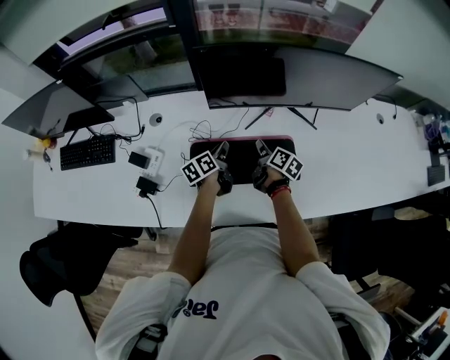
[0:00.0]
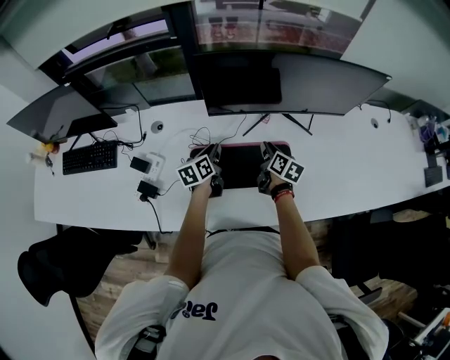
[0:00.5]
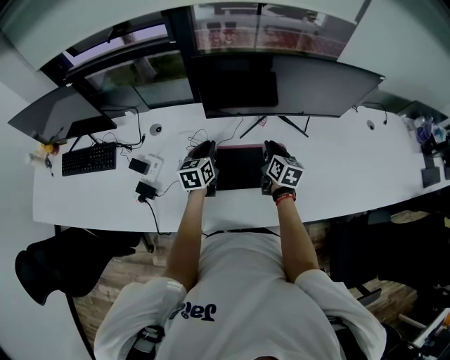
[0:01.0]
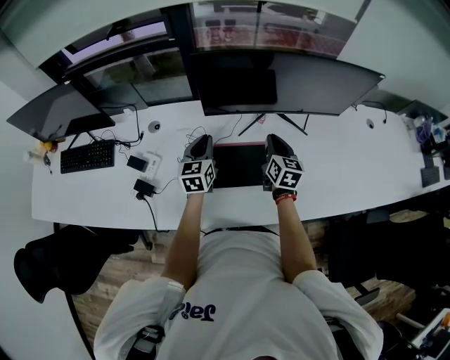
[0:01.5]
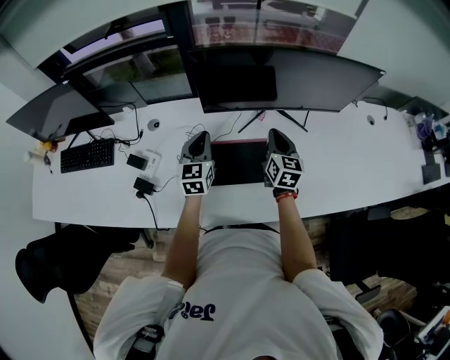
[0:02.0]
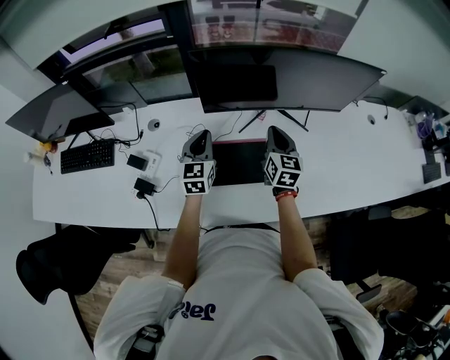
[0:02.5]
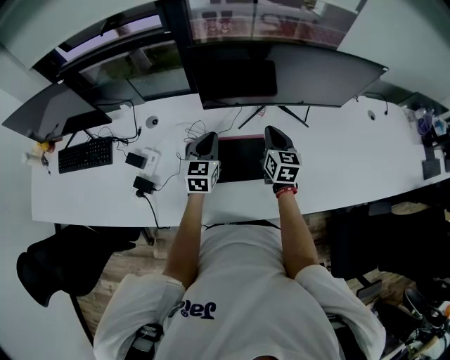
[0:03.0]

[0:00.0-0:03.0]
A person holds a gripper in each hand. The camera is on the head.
0:00.0 to 0:01.5: Both grippers travel together upward, some 10 cm. The right gripper rotates about 40 degrees; the left gripper rotates around the line of its fingers by some 50 degrees, clockwise from behind.
0:01.5 to 0:03.0: There are only small adjustments of the grippers.

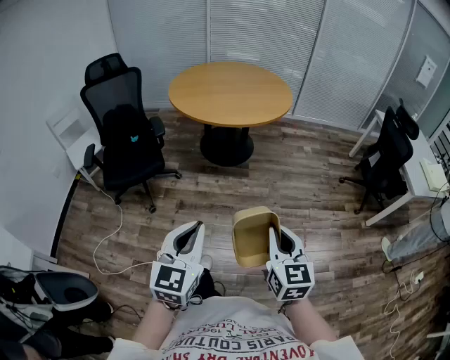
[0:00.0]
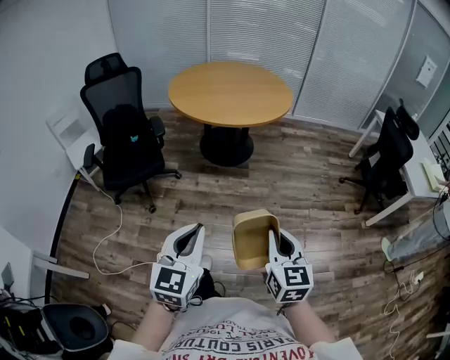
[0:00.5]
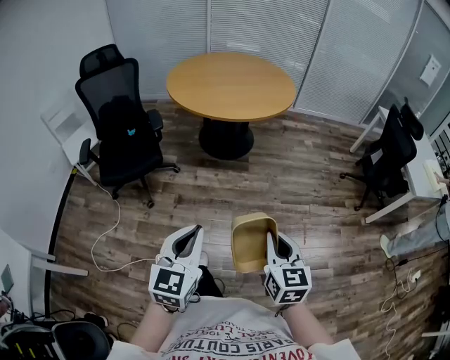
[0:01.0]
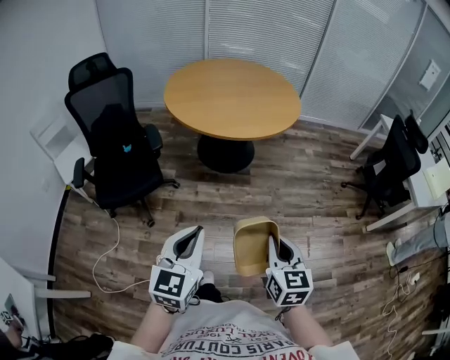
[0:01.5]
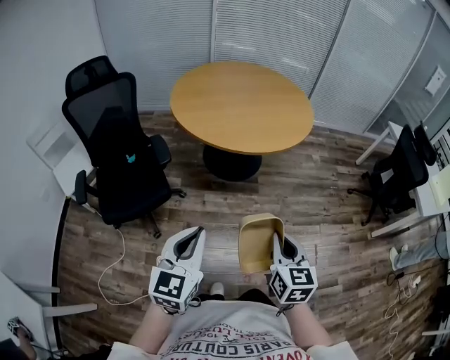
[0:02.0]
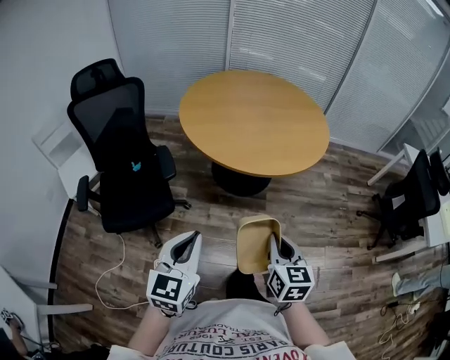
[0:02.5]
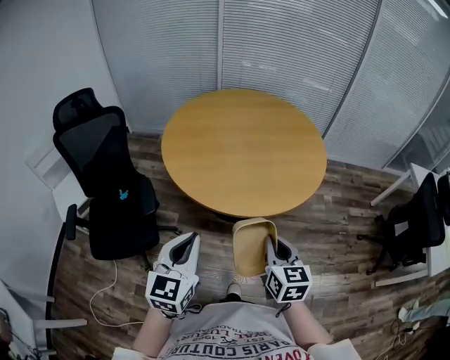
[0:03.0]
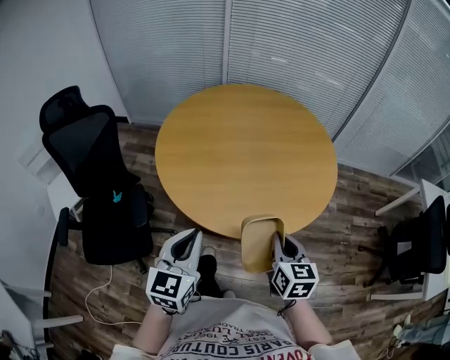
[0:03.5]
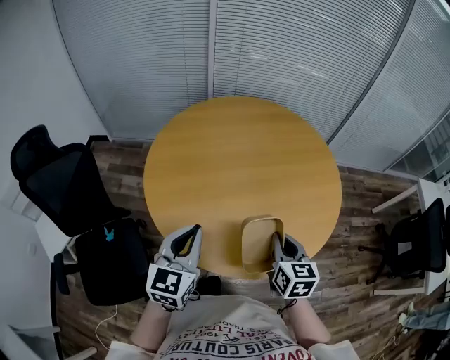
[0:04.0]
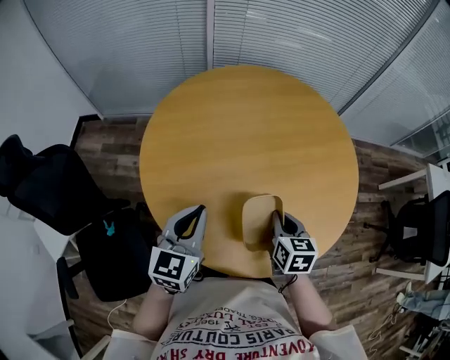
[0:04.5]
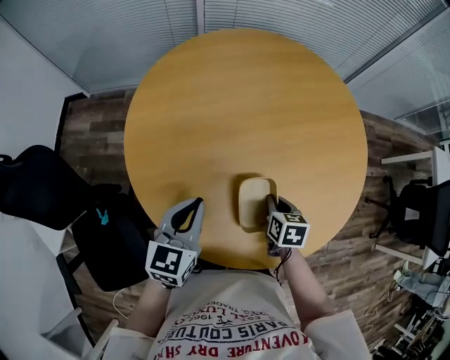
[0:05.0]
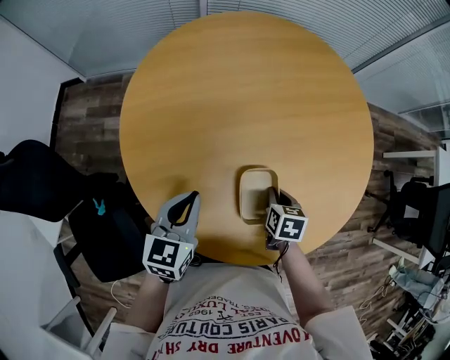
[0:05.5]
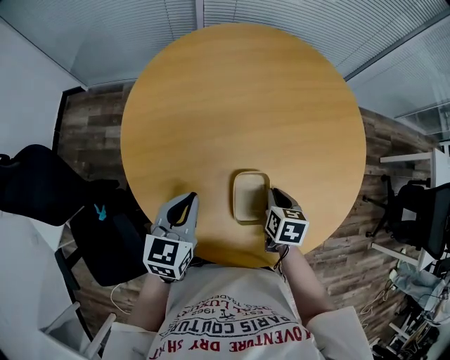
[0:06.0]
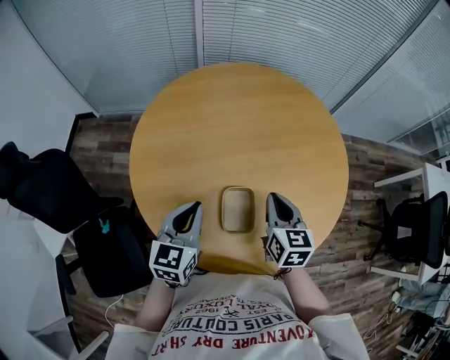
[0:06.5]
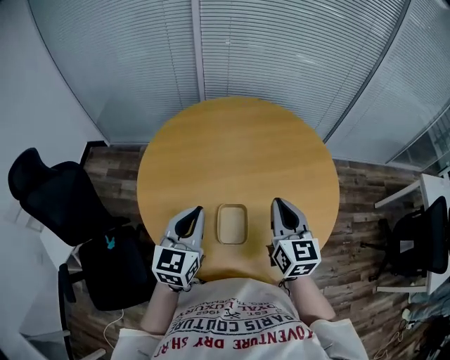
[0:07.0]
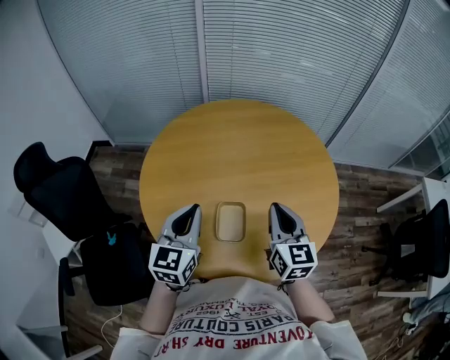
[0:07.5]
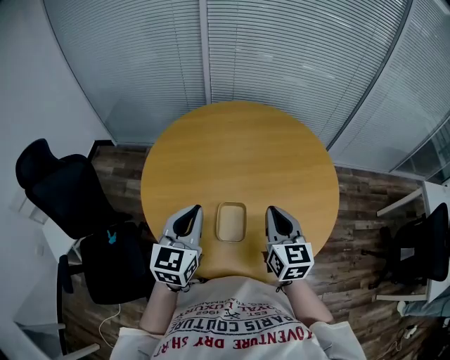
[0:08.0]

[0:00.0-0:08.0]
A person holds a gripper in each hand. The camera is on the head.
0:00.0 to 0:02.0: The two grippers go some 30 cm forward and to the left.
0:02.0 to 0:04.0: The pair of grippers is taken forward, about 60 cm.
0:04.0 to 0:06.0: The right gripper is displaced downward and forward by approximately 25 cm, and rotates about 30 degrees. Meanwhile the left gripper is displaced forward and downward by roughly 20 cm.
0:06.0 to 0:08.0: The left gripper shifts approximately 20 cm upward, to the right and backward, and rotates about 20 degrees. Meanwhile the right gripper heads upward, covering approximately 25 cm, and angles its fingers upward, by some 40 degrees.

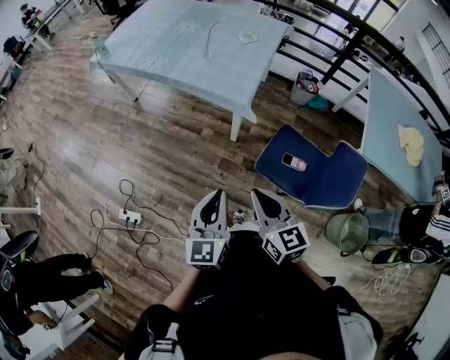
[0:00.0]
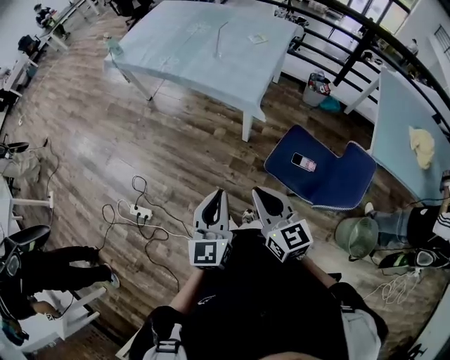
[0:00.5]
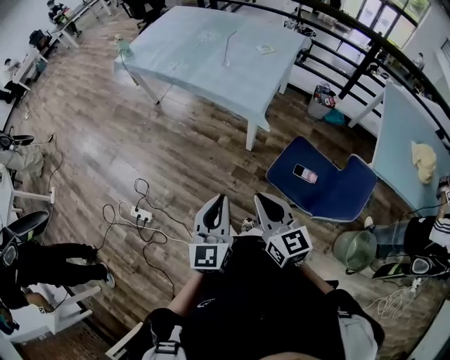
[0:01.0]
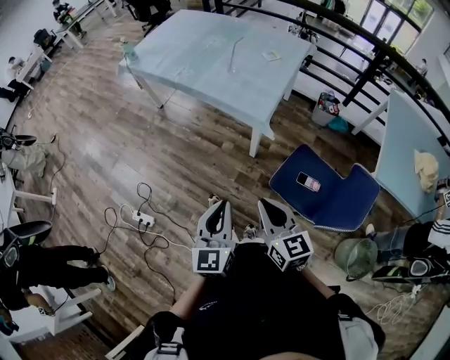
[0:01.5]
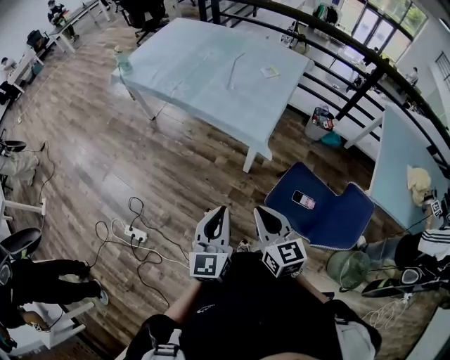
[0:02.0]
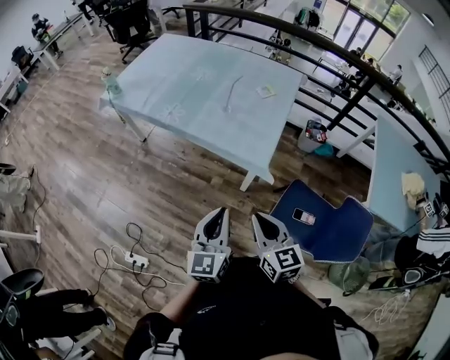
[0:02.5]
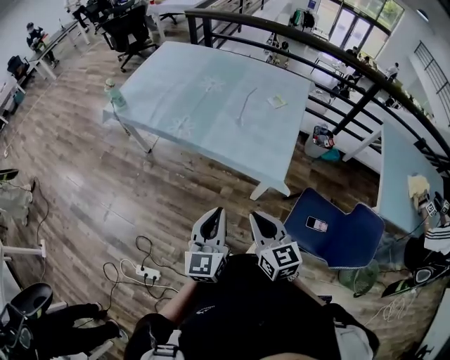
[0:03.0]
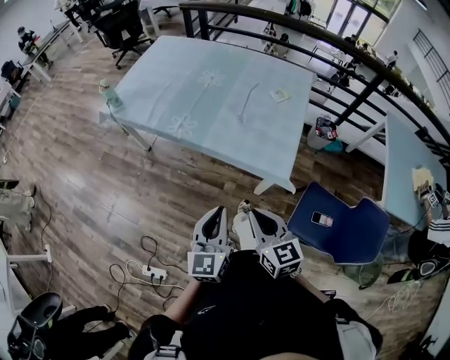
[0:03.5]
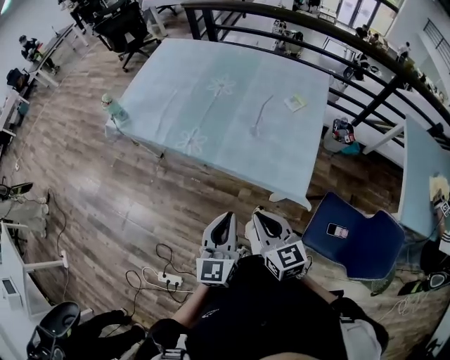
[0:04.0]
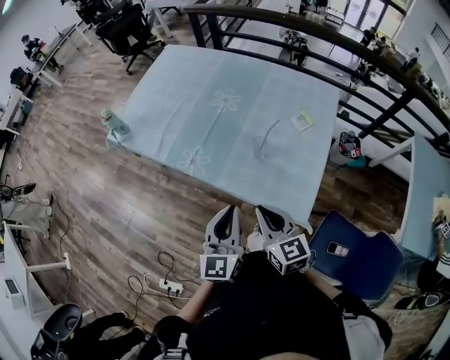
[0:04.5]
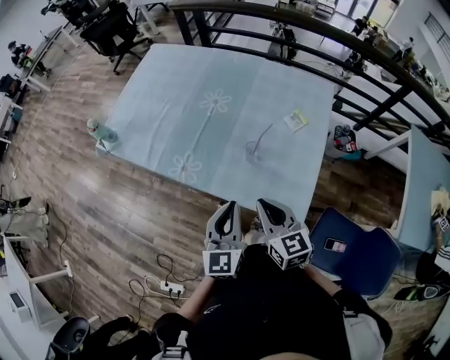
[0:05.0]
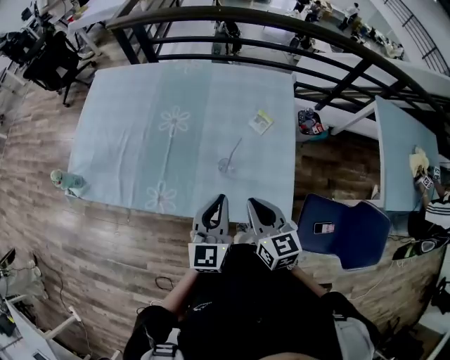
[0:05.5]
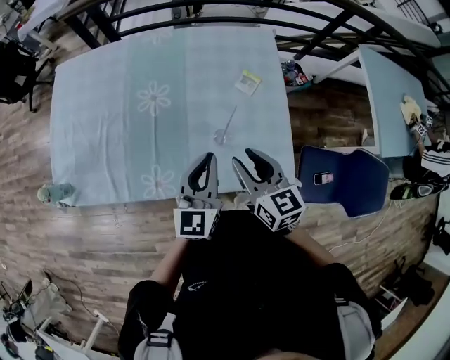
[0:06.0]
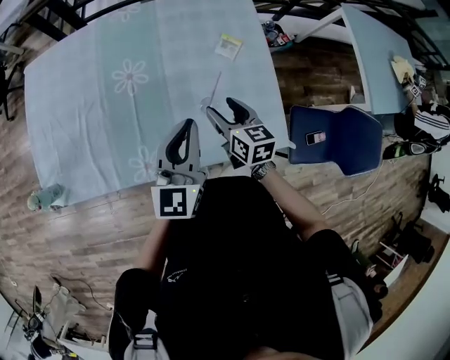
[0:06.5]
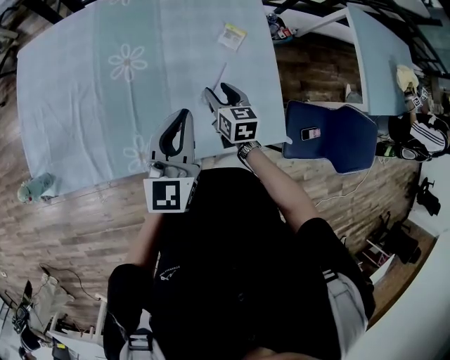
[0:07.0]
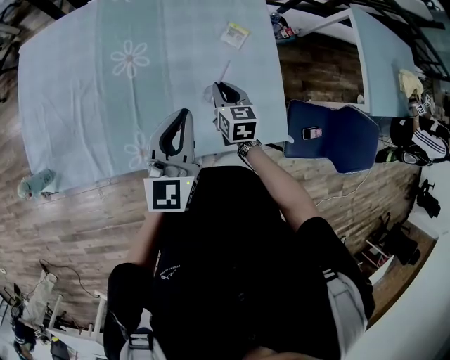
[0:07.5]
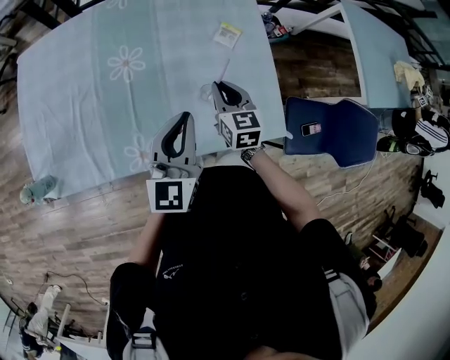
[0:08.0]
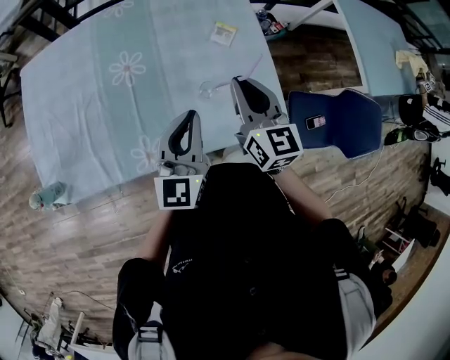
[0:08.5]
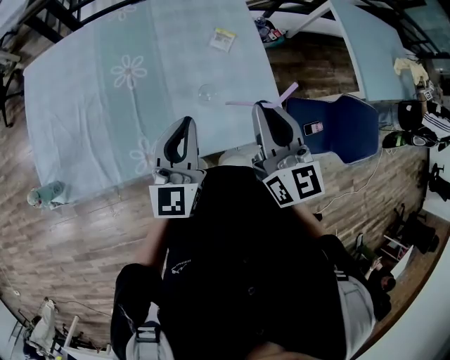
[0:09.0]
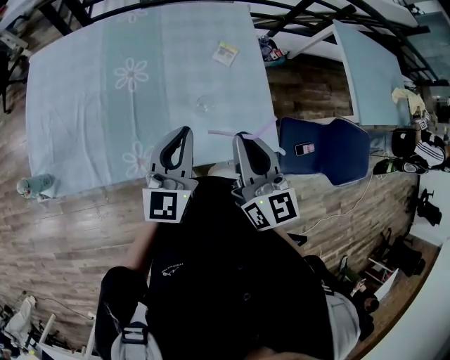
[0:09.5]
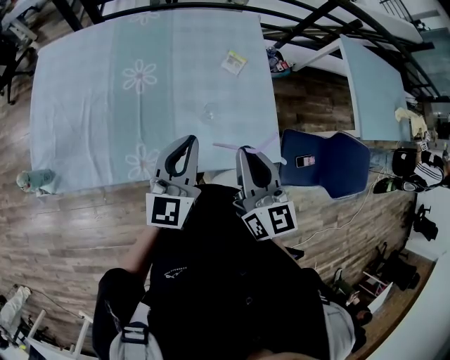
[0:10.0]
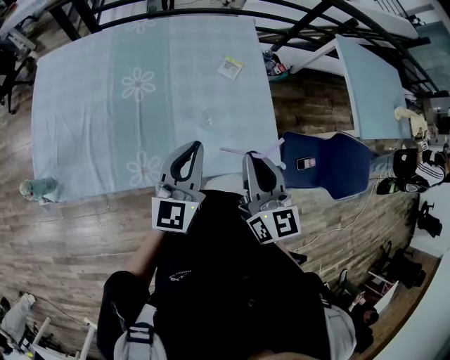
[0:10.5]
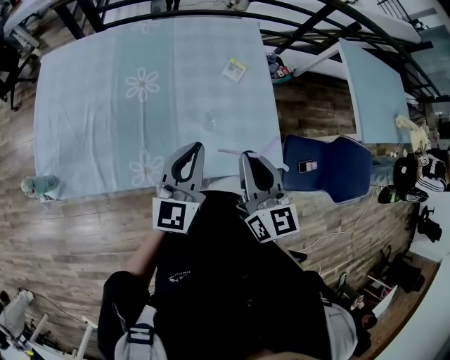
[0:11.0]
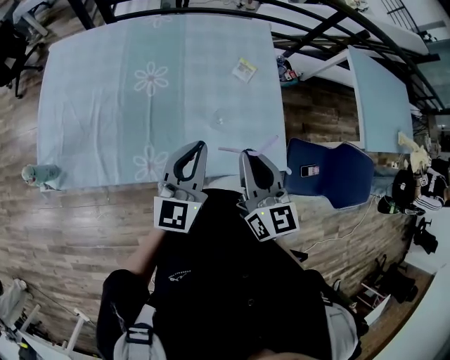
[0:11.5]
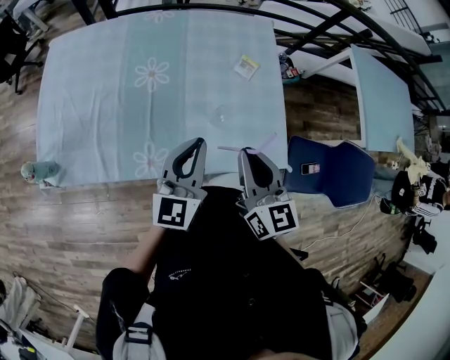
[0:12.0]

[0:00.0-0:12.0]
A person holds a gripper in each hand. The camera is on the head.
0:00.0 to 0:02.0: The grippers both shift forward by some 5 cm.
0:02.0 to 0:04.0: The right gripper is displaced forward and to the left by some 35 cm. The left gripper is displaced forward by approximately 30 cm.
0:04.0 to 0:06.0: The left gripper moves some 35 cm, and changes its angle by some 30 degrees; the right gripper changes place by approximately 30 cm, turns by some 30 degrees, and opens up.
0:06.0 to 0:08.0: The right gripper moves downward and forward, approximately 15 cm, and closes.
0:08.0 to 0:10.0: The right gripper is displaced upward and backward by roughly 25 cm, and swivels approximately 20 degrees.
0:10.0 to 0:12.0: There are only small adjustments of the grippers.

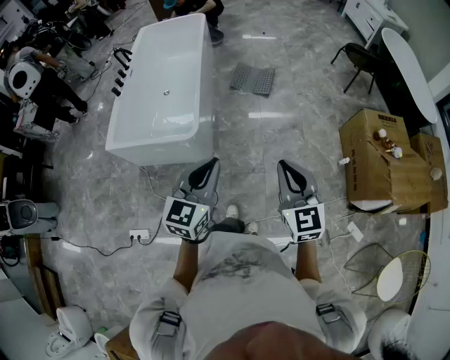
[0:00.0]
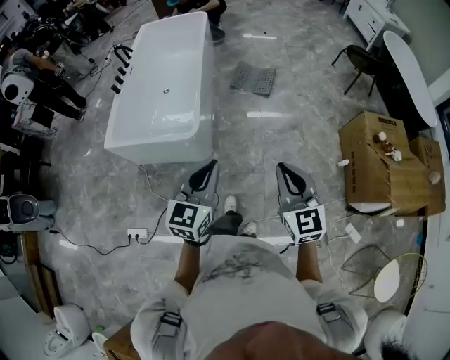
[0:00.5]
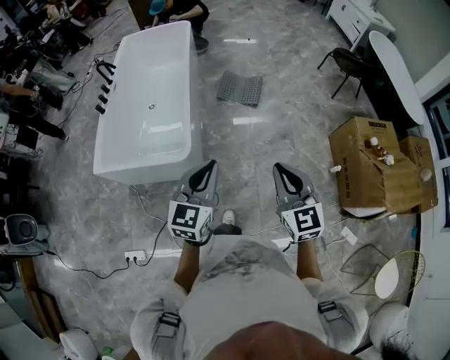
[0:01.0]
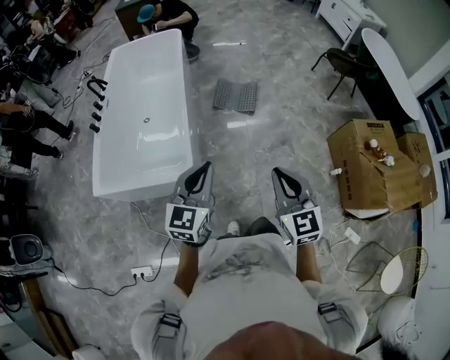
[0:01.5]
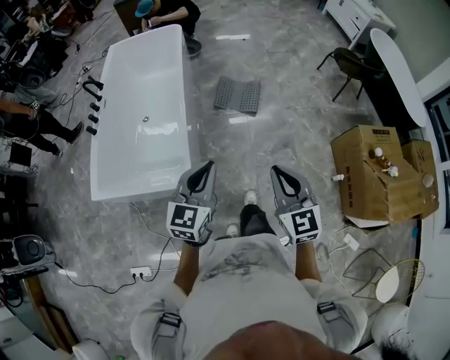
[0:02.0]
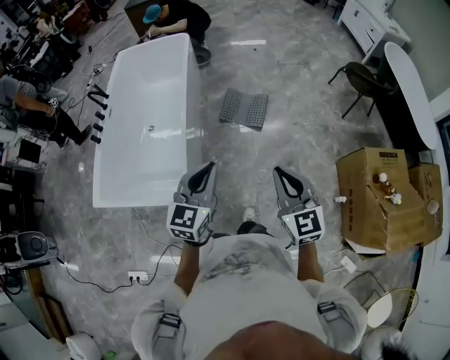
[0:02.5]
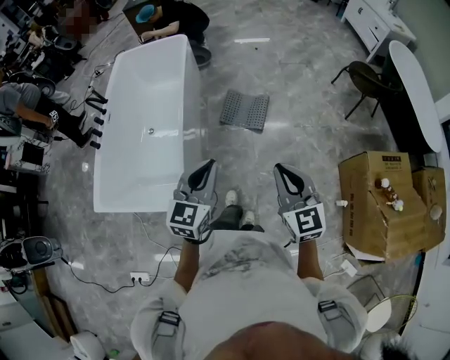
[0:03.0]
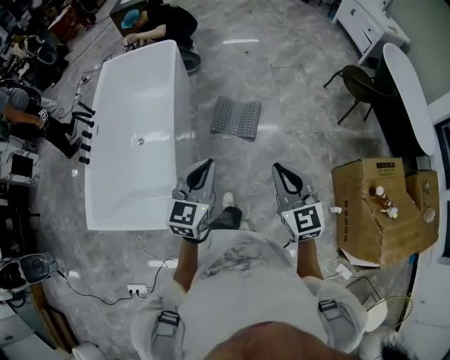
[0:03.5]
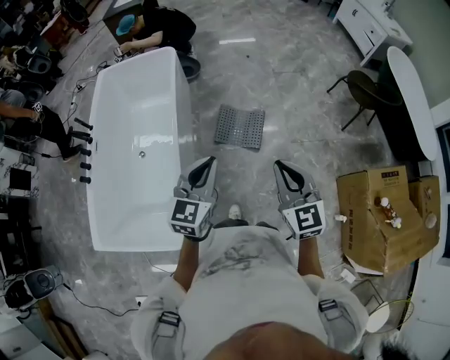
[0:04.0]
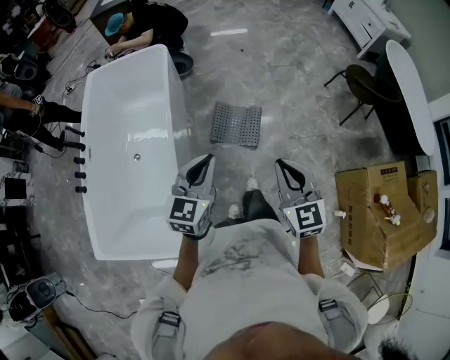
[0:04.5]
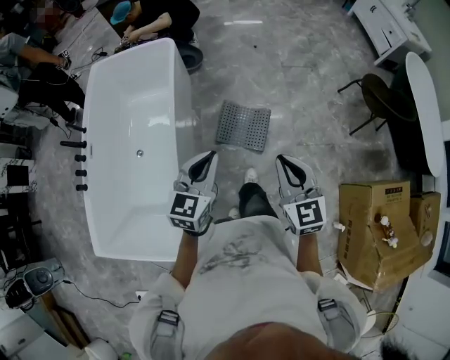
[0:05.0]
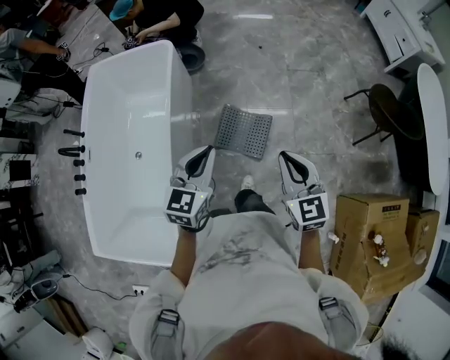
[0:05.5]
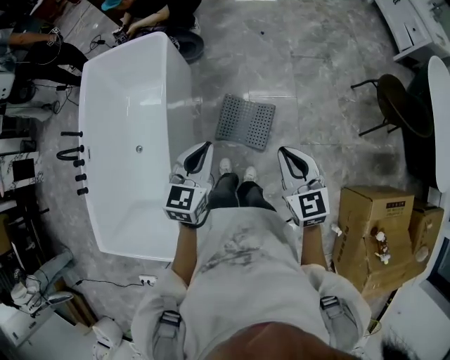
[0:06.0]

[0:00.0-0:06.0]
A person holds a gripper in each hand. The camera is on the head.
0:00.0 to 0:02.0: Both grippers travel together forward, about 25 cm.
0:02.0 to 0:04.0: Both grippers move forward, roughly 35 cm.
0:04.0 to 0:06.0: The two grippers go roughly 35 cm forward.
